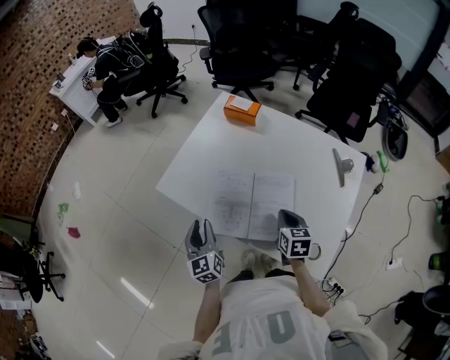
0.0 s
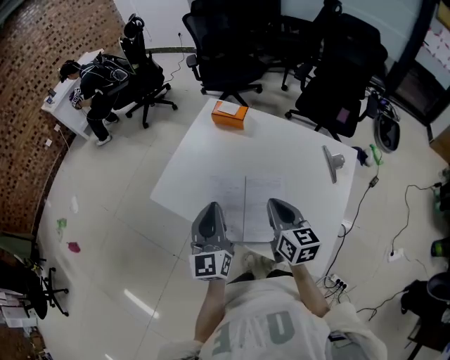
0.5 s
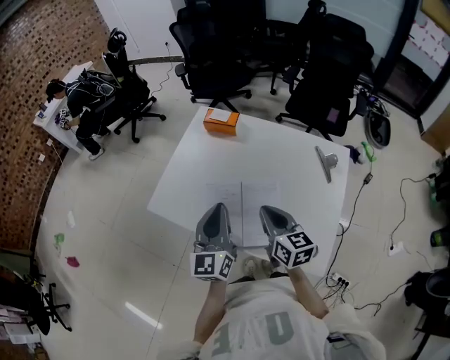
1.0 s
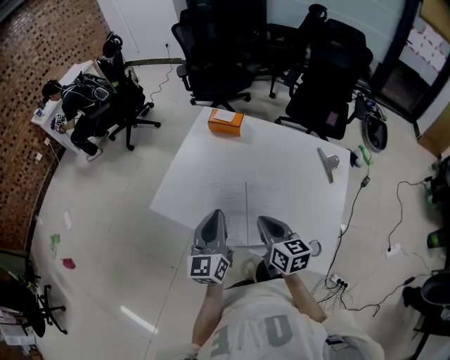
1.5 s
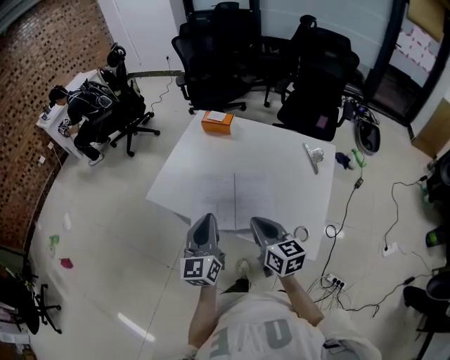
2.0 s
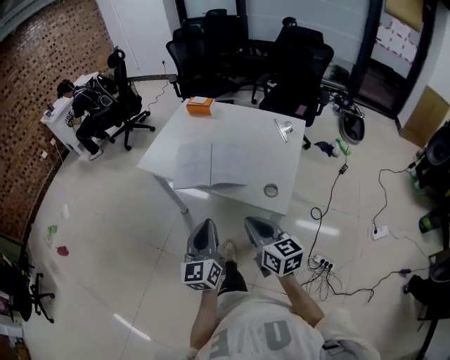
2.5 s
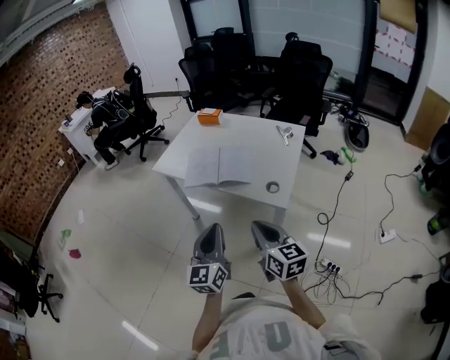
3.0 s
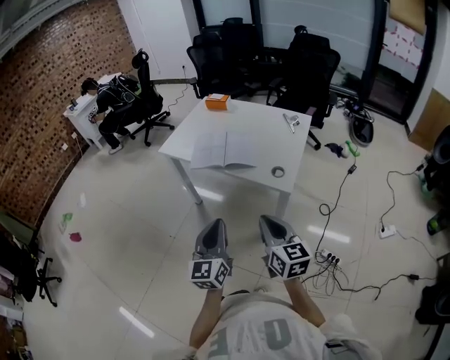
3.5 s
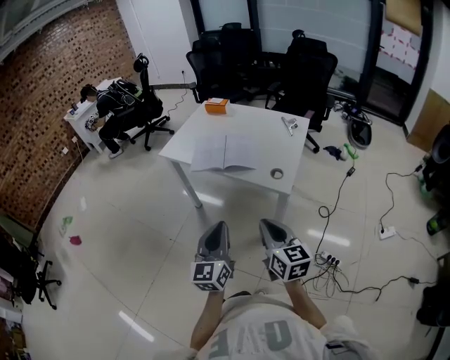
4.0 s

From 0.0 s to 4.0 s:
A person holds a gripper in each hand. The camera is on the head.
From 0.0 s to 2.0 s: The right gripper is displaced upward, backward and to the left by approximately 15 cm, and swivels about 30 degrees, while the left gripper shifts about 15 cm upward, to the right and backward, changes its angle by about 30 degrees, and closes its fingers.
From 2.0 s to 4.0 s: The grippers both shift backward by approximately 35 cm.

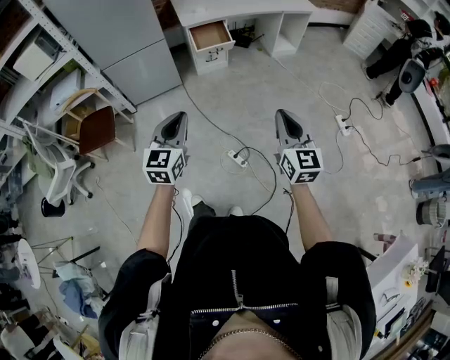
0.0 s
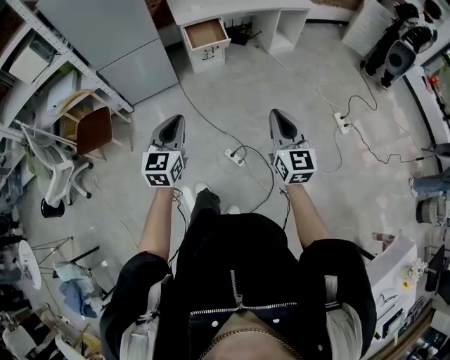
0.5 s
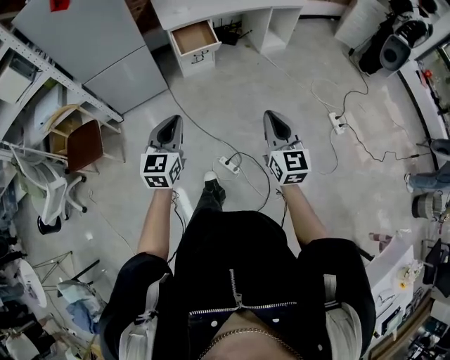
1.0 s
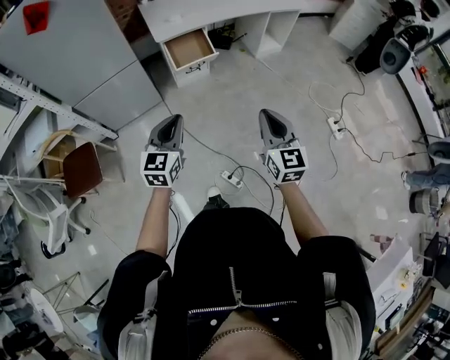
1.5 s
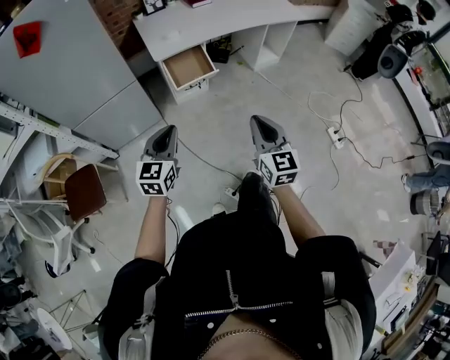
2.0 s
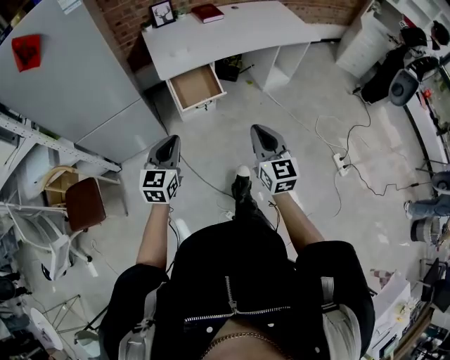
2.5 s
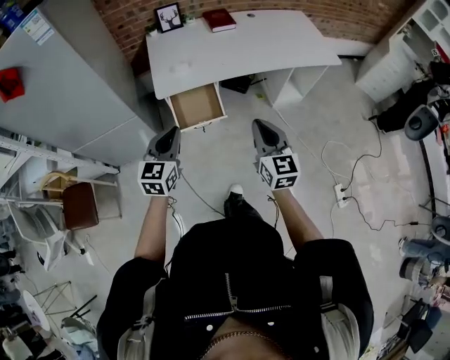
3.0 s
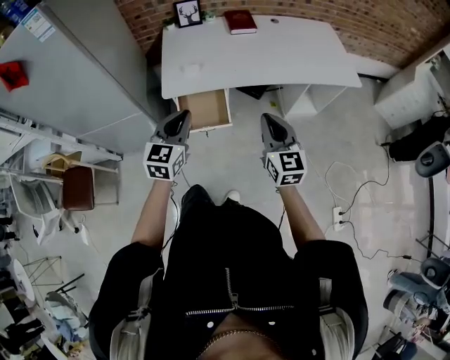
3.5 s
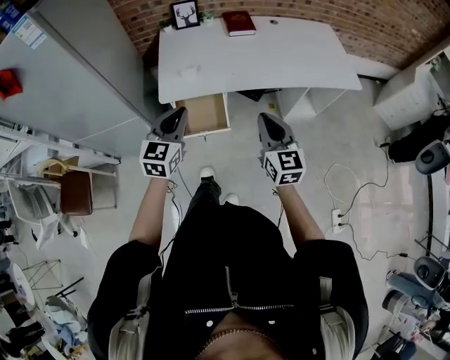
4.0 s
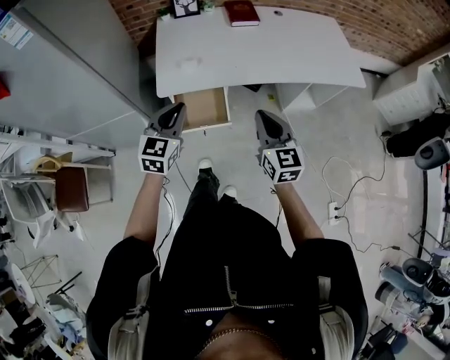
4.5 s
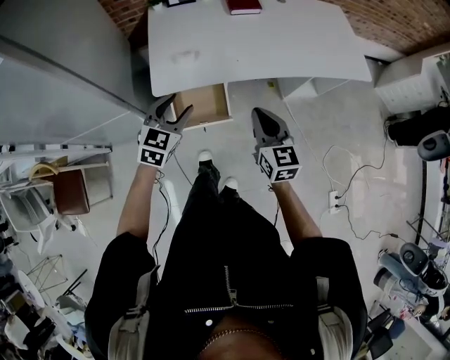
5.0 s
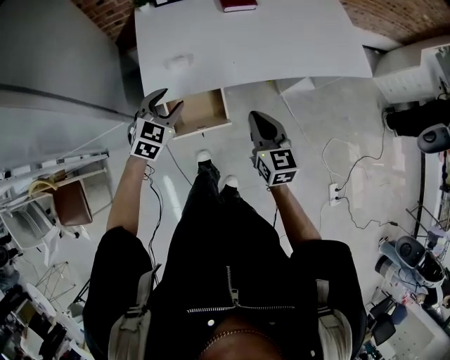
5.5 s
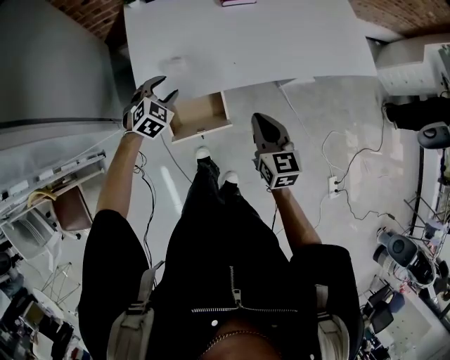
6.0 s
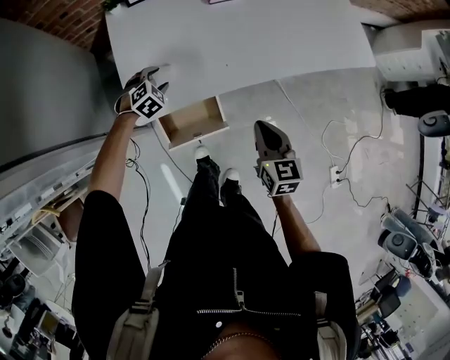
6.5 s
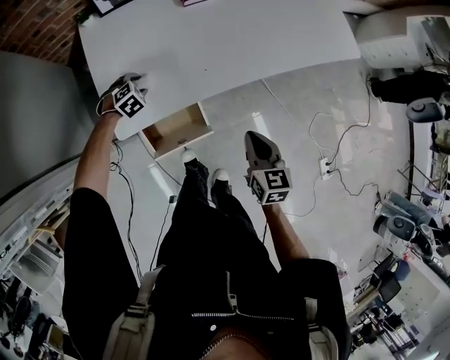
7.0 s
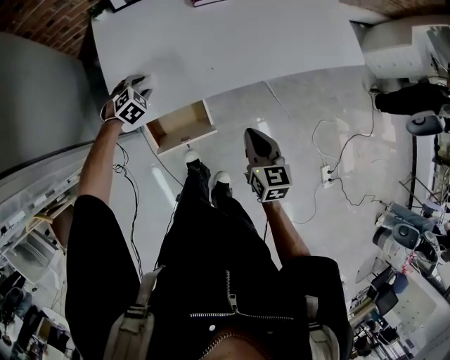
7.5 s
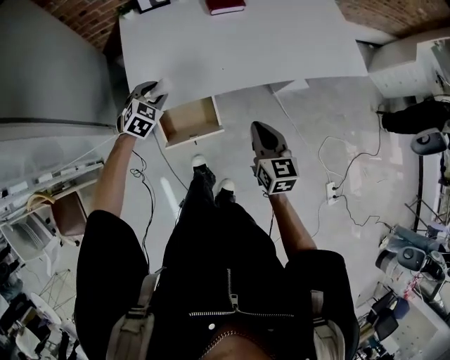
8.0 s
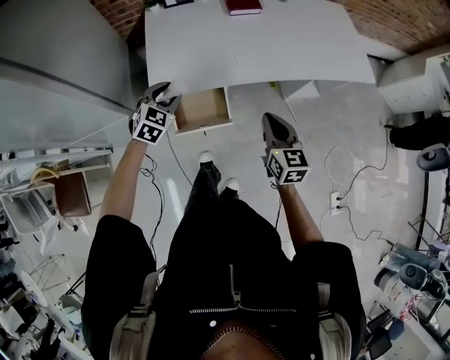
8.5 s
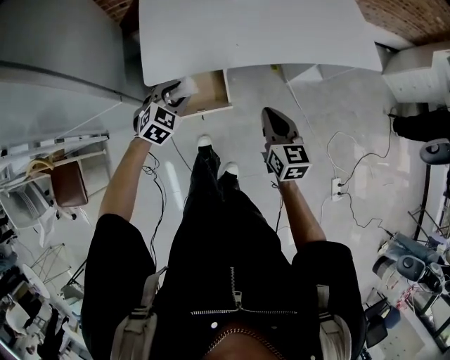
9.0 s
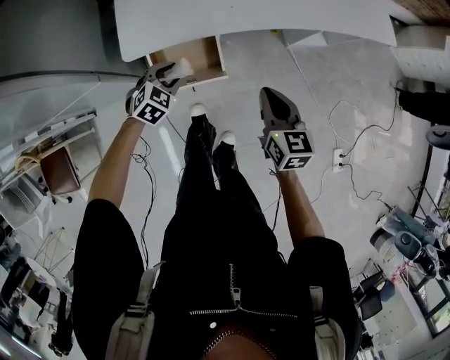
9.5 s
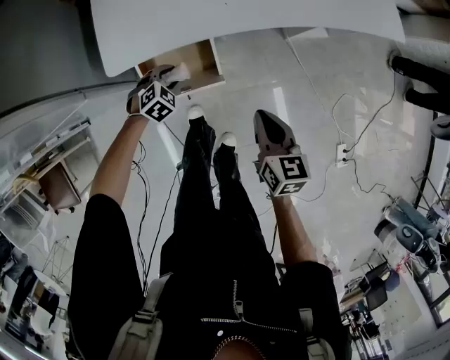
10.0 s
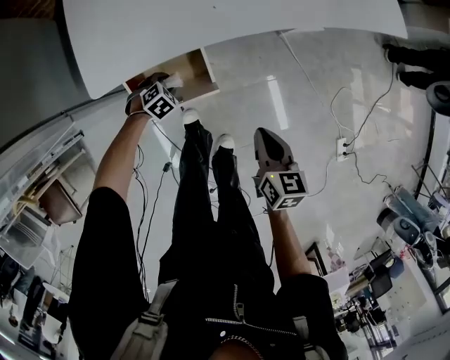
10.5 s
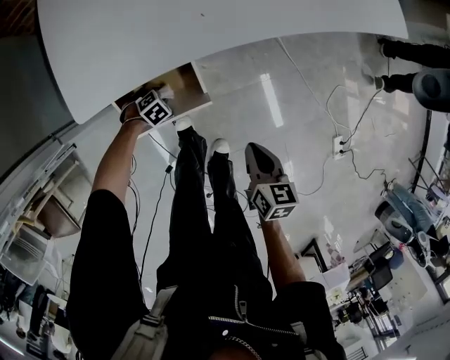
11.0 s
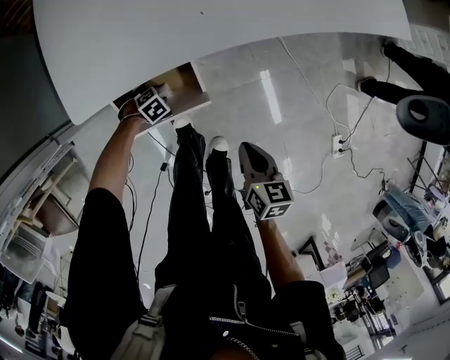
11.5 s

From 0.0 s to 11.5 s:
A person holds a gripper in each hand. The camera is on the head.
From 0.0 s to 2.0 s: The two grippers go roughly 30 cm forward.
From 2.0 s to 4.0 s: The two grippers travel together, forward, about 40 cm.
From 4.0 s to 6.0 s: The left gripper moves forward and downward, approximately 30 cm, points its fingers about 30 degrees further downward, and opens. Meanwhile the right gripper travels forward, downward and to the left by about 20 cm, and changes its angle by approximately 20 degrees.
From 6.0 s to 7.5 s: The right gripper shifts by approximately 5 cm. Meanwhile the left gripper shifts about 10 cm downward and forward.
From 7.5 s to 9.5 s: The left gripper travels backward by approximately 20 cm; the right gripper shifts some 5 cm backward, and reaches some 5 cm upward, then returns.
From 9.5 s to 11.5 s: The left gripper heads downward, covering about 30 cm, and points its fingers approximately 30 degrees further downward, while the right gripper shifts approximately 15 cm downward, and swivels about 30 degrees.

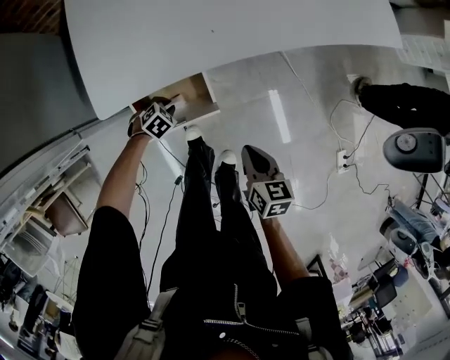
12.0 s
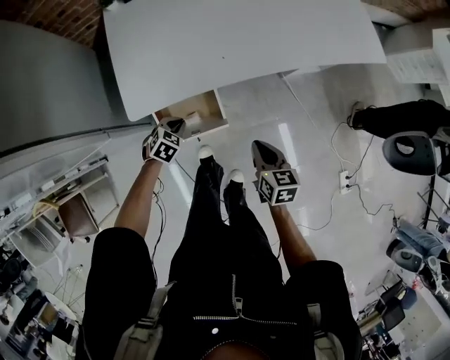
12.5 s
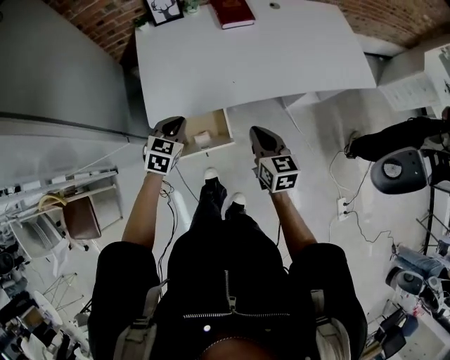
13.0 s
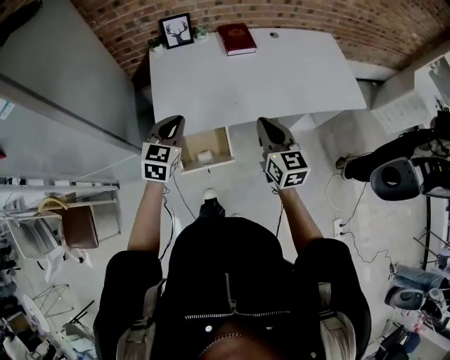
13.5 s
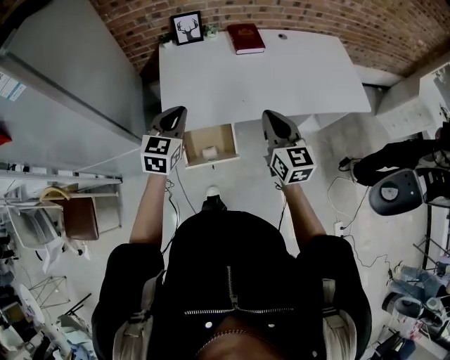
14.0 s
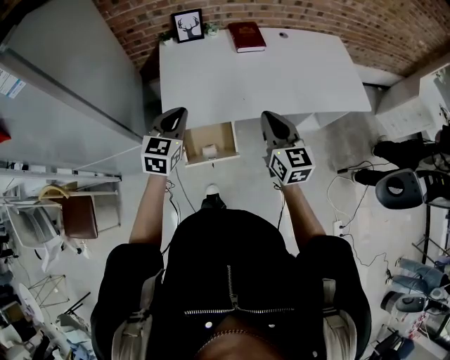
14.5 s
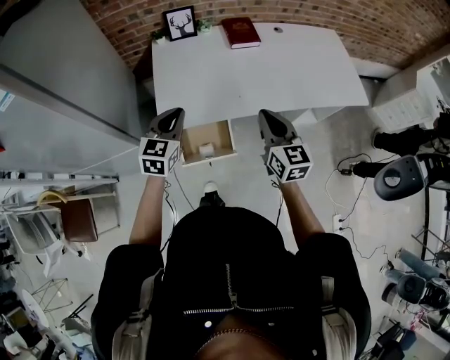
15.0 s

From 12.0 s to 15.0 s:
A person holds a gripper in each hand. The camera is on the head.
From 12.0 s to 13.5 s: The right gripper moves upward and forward, about 30 cm, and rotates some 40 degrees. The left gripper shifts some 40 cm upward, and angles its fingers upward, by about 50 degrees.
From 13.5 s to 15.0 s: The grippers make only small movements.

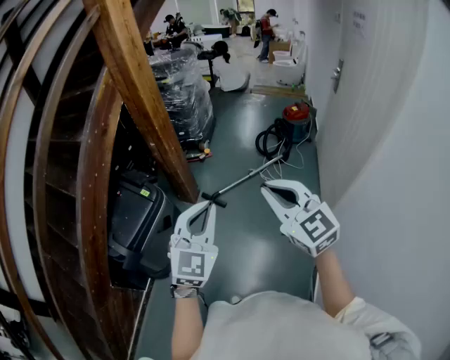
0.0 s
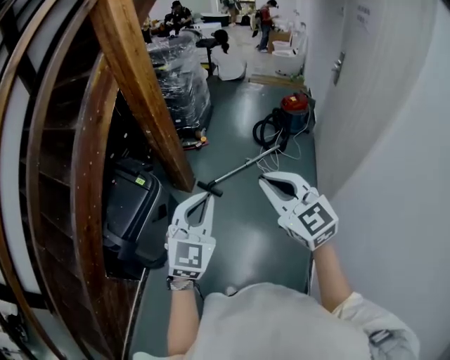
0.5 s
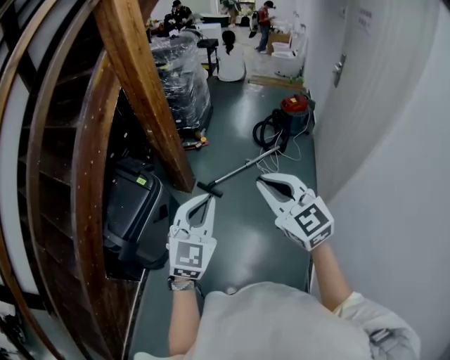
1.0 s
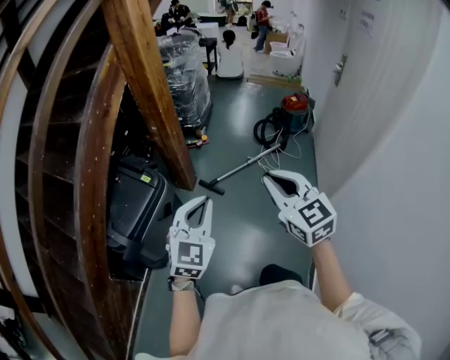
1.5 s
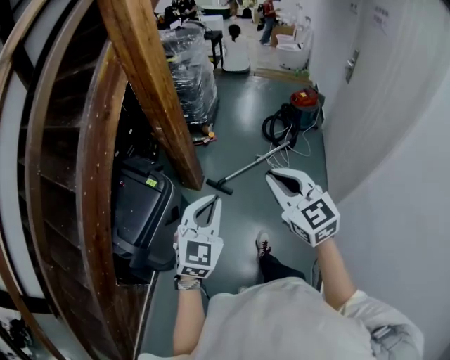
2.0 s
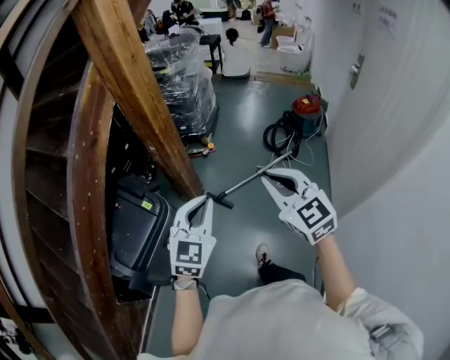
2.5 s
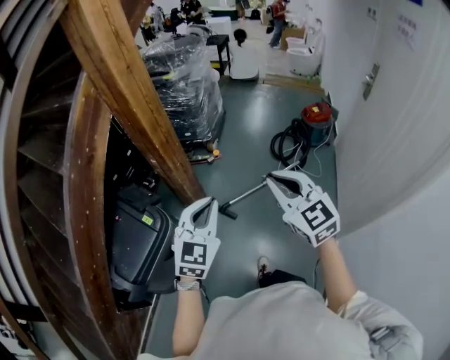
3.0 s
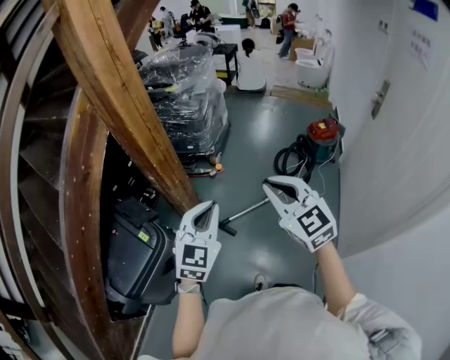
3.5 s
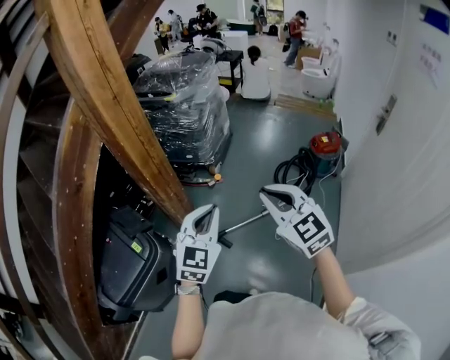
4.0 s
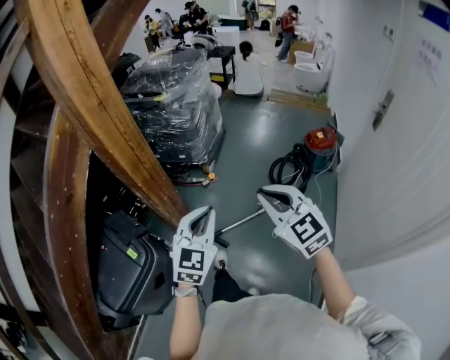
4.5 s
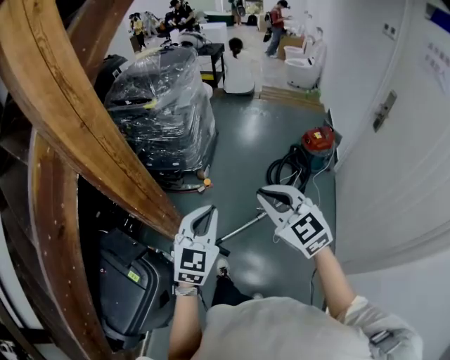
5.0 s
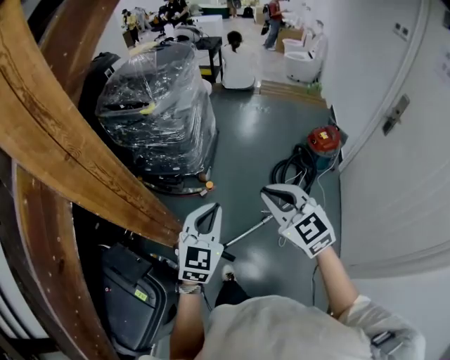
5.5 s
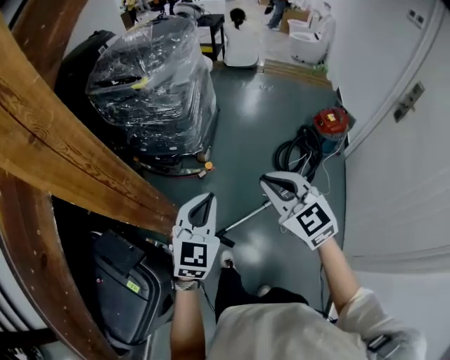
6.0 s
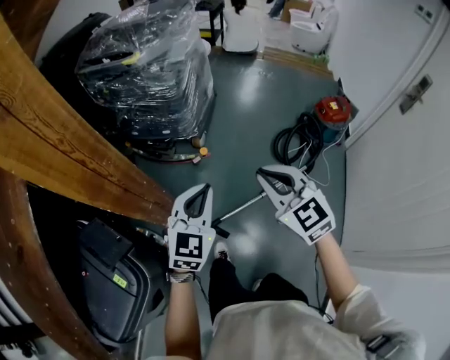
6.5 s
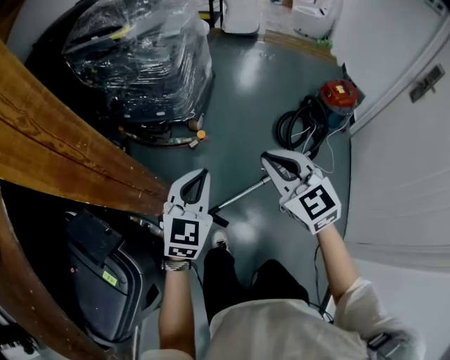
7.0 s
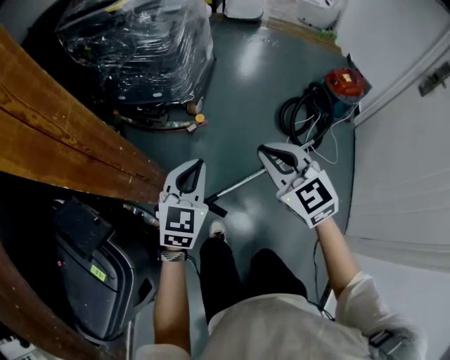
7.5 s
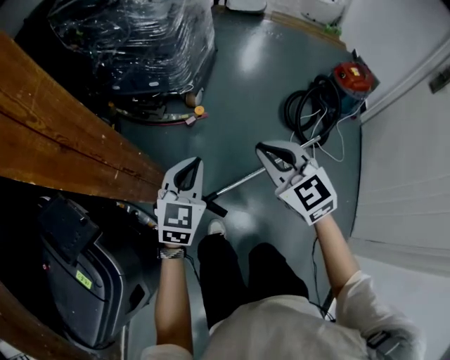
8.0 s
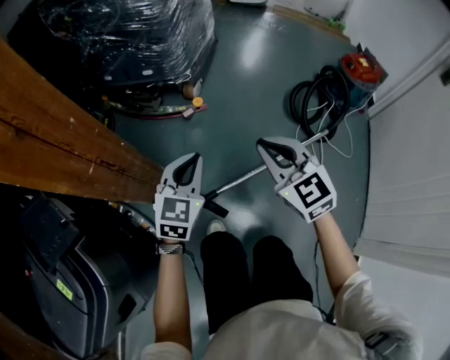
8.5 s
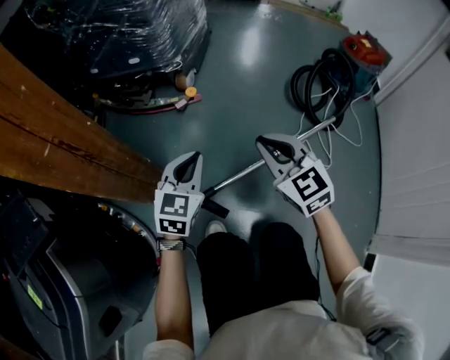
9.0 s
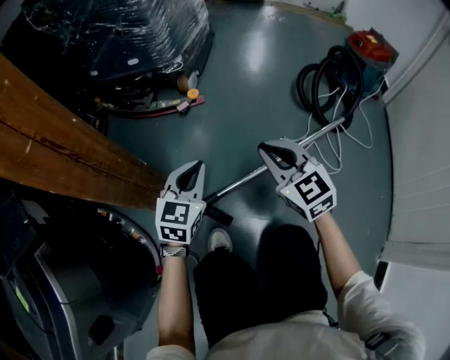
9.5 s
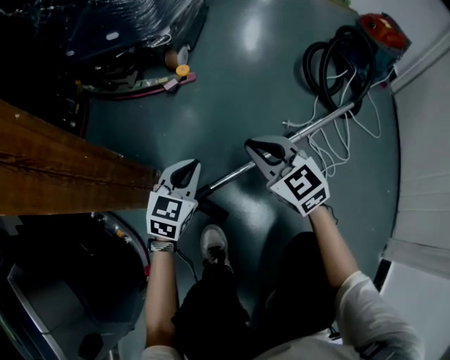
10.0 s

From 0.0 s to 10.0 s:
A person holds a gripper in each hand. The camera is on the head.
From 0.0 s to 2.0 s: The left gripper is displaced to the left, forward and downward by about 15 cm; the right gripper travels forward and to the left by approximately 10 cm.
From 2.0 s to 4.0 s: The grippers both shift forward by approximately 35 cm.
From 4.0 s to 6.0 s: The two grippers go some 25 cm forward and downward.
From 6.0 s to 8.0 s: The two grippers go roughly 30 cm downward.
From 8.0 s to 10.0 s: Both grippers move downward, about 40 cm.
